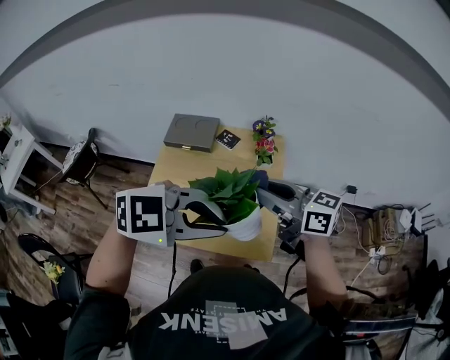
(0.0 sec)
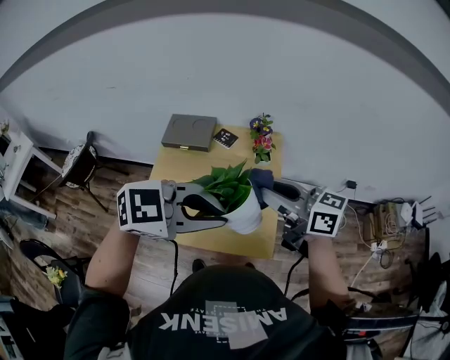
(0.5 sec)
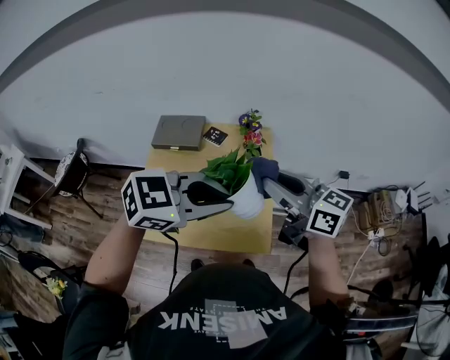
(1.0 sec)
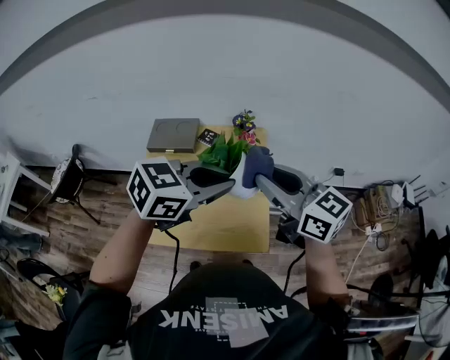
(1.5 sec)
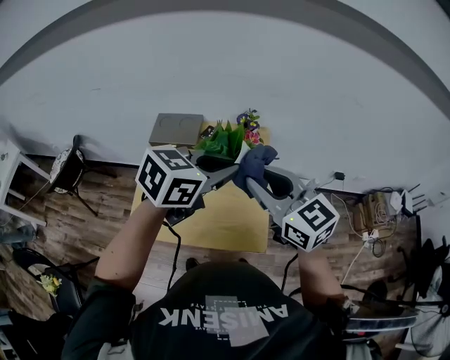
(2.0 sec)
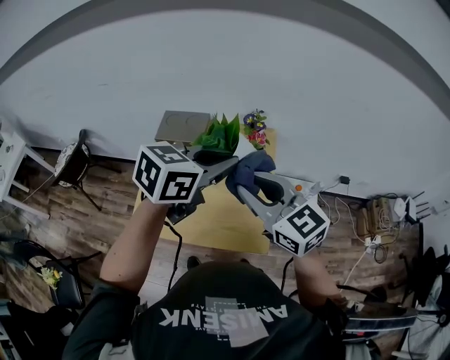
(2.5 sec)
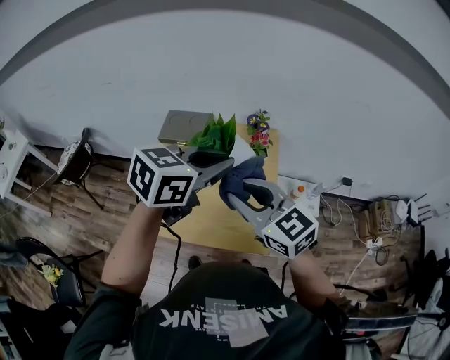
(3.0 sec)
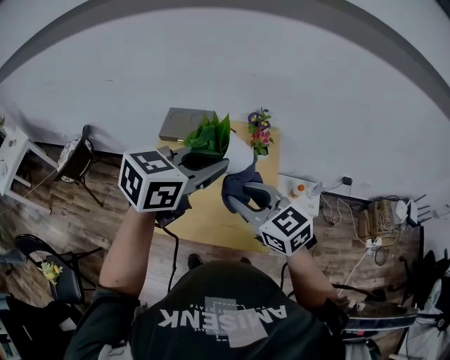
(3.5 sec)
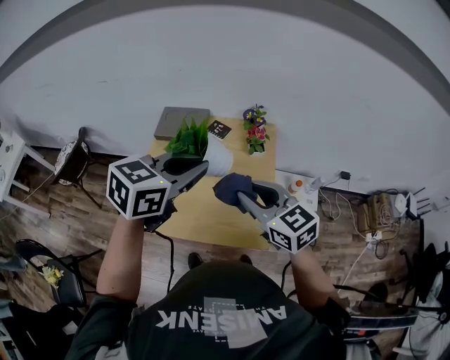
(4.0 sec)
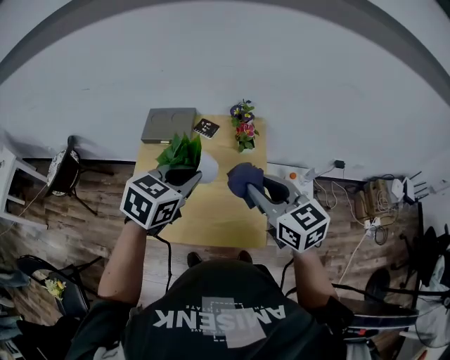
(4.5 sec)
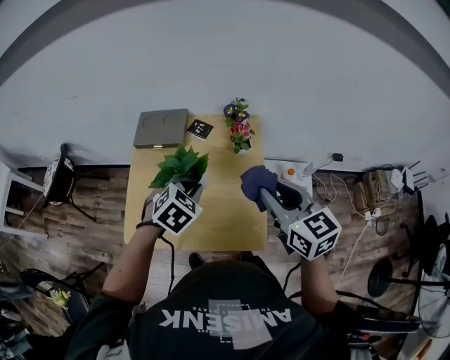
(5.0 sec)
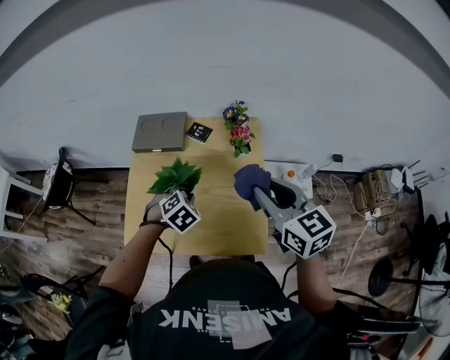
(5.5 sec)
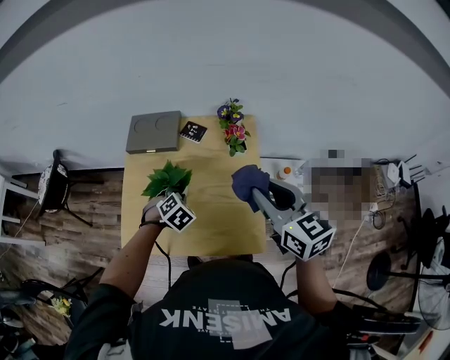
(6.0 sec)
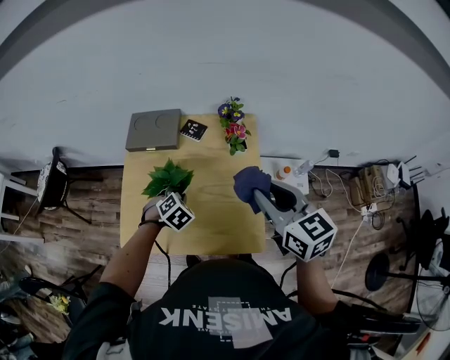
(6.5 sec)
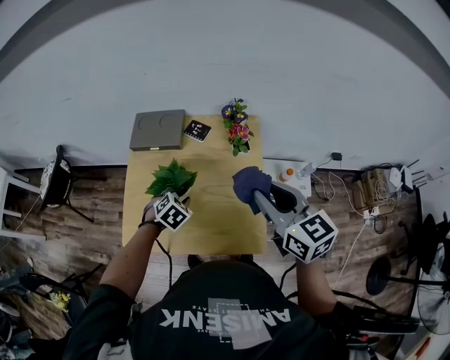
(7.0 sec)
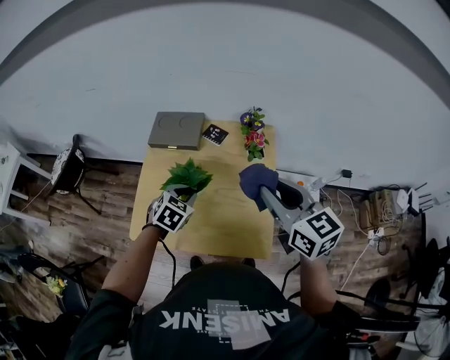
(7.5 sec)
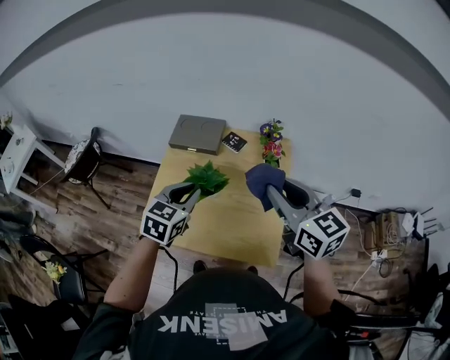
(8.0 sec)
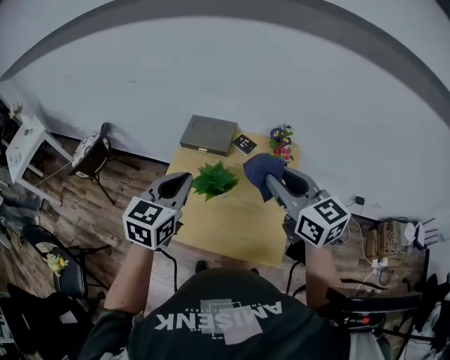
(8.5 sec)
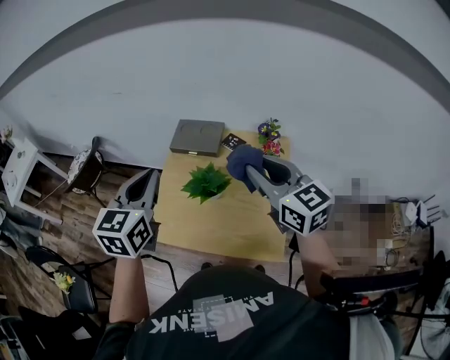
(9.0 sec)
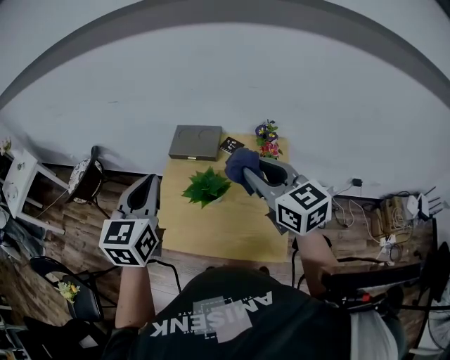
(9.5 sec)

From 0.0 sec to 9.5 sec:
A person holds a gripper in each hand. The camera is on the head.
From 0.0 sec to 2.0 sec: The right gripper rotates roughly 30 degrees. The left gripper ends up about 10 cm from where it was, and changes its angle by about 40 degrees.
From 2.0 sec to 4.0 sec: The right gripper goes about 10 cm downward; the left gripper travels to the left by some 10 cm.
From 4.0 sec to 5.5 sec: The right gripper shifts approximately 10 cm to the right and forward, while the left gripper shifts roughly 25 cm downward, and tips its fingers downward by approximately 40 degrees.
From 5.5 sec to 7.5 sec: The left gripper moves approximately 5 cm downward and comes back, and changes its angle by some 20 degrees.
From 7.5 sec to 9.5 sec: The left gripper goes approximately 30 cm upward and to the left, and tilts its fingers approximately 40 degrees upward, while the right gripper travels to the left and upward by roughly 10 cm.

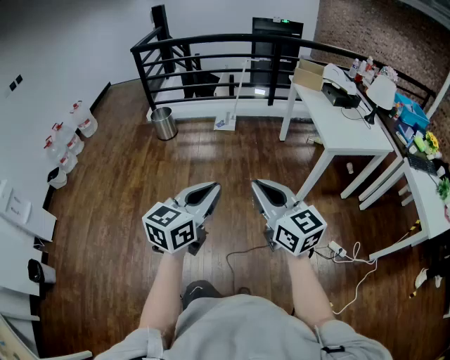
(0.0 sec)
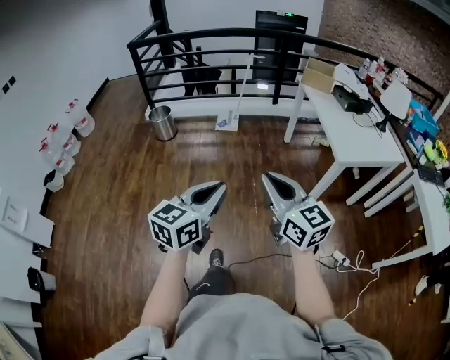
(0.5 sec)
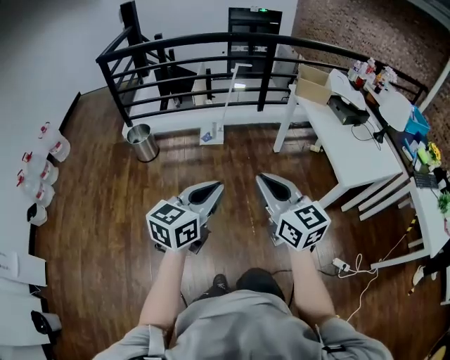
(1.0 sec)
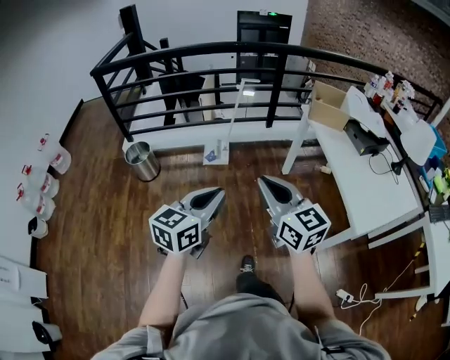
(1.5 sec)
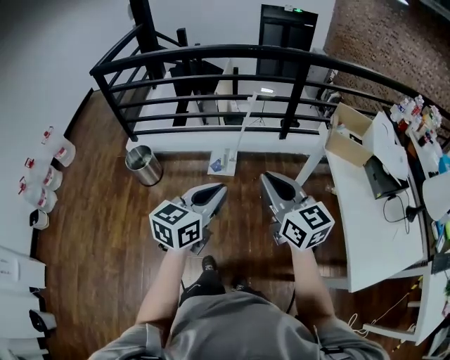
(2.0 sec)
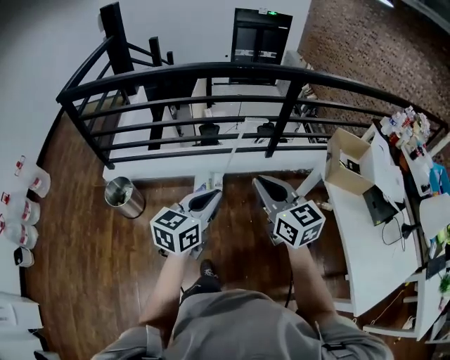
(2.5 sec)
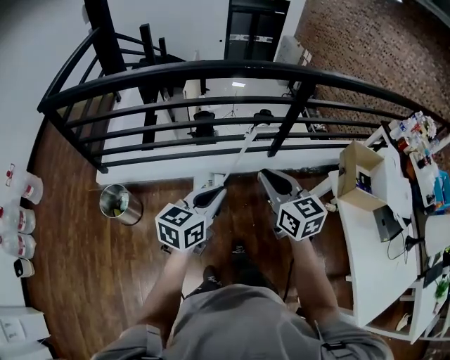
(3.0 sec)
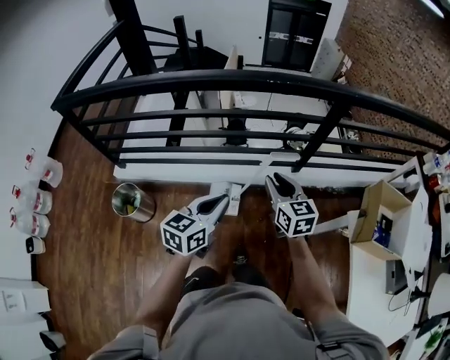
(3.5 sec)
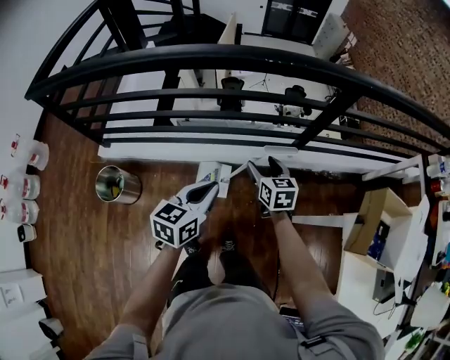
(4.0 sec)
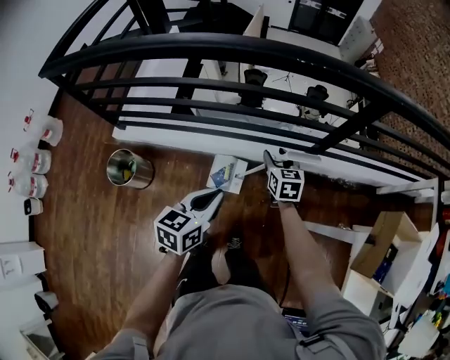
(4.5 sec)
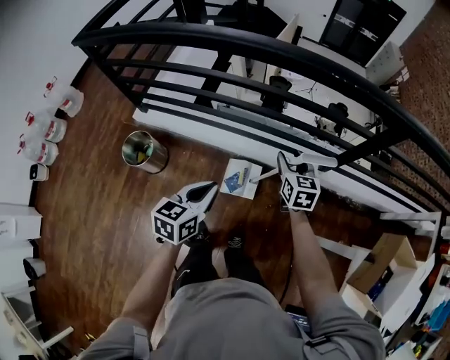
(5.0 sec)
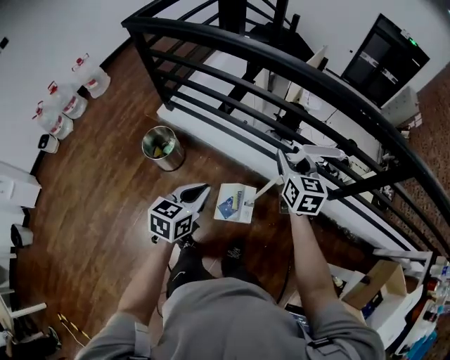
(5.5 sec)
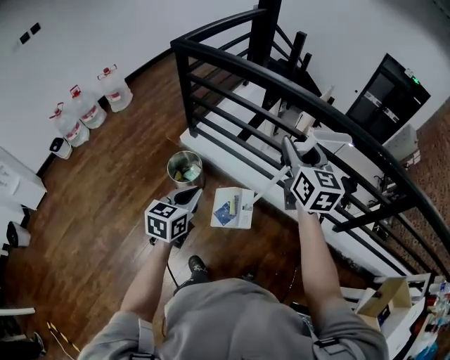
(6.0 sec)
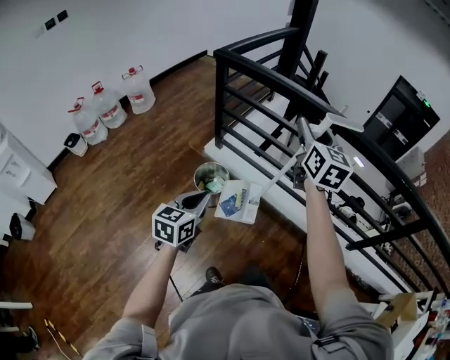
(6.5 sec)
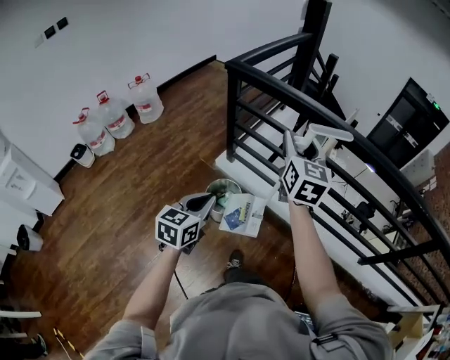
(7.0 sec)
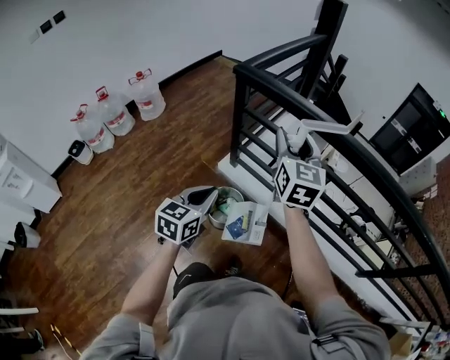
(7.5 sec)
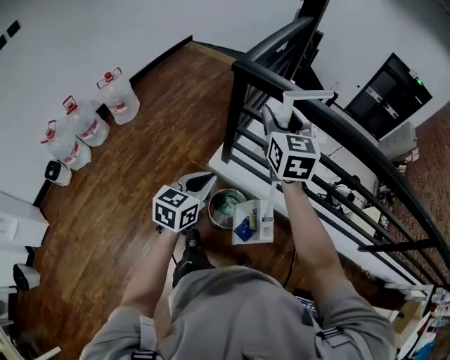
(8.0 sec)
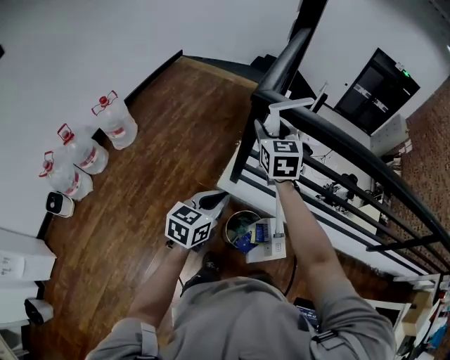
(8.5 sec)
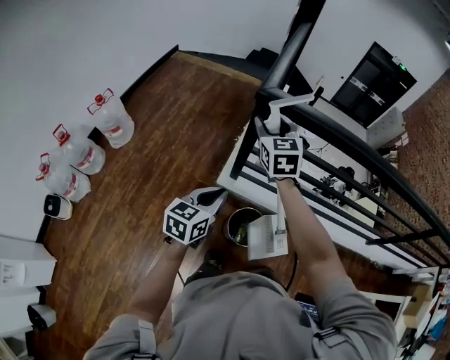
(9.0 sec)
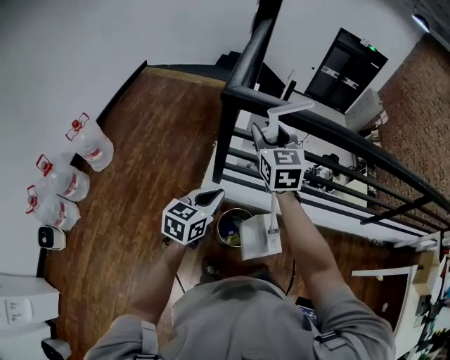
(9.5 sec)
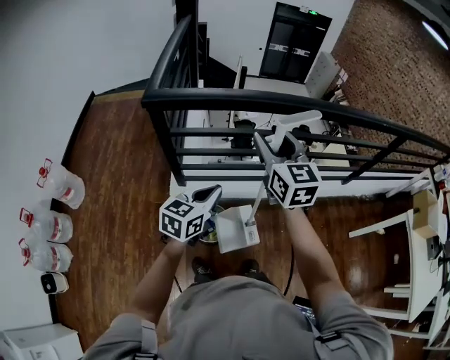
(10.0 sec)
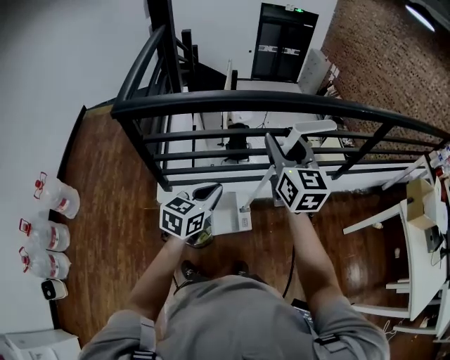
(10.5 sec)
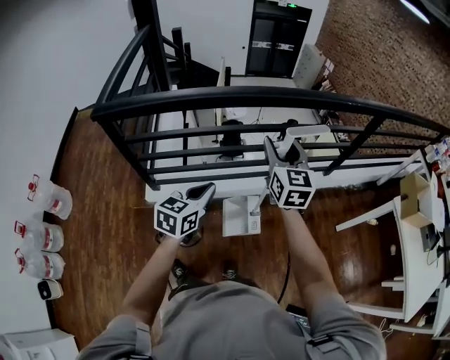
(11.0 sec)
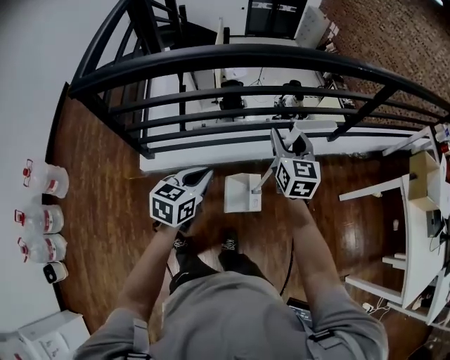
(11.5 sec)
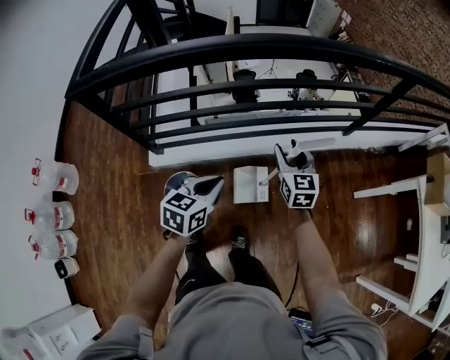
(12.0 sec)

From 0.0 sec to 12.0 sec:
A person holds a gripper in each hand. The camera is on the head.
From 0.0 sec to 2.0 sec: The pair of grippers is taken forward, roughly 80 cm.
From 2.0 sec to 4.0 sec: The pair of grippers is taken forward, approximately 60 cm. The right gripper is displaced downward by some 30 cm, changes its angle by approximately 30 degrees, and opens.
From 4.0 sec to 6.0 sec: The right gripper shifts by about 50 cm, and swivels approximately 40 degrees, while the left gripper shifts by roughly 40 cm, and swivels some 40 degrees.
From 6.0 sec to 8.0 sec: The two grippers travel together, to the left and forward, some 50 cm.
From 8.0 sec to 10.0 sec: The left gripper changes place by roughly 15 cm, and changes its angle by roughly 30 degrees. The right gripper changes place by about 20 cm, and turns by roughly 20 degrees.
From 10.0 sec to 12.0 sec: The left gripper travels to the right and downward by about 25 cm. The right gripper travels to the right and downward by some 40 cm.

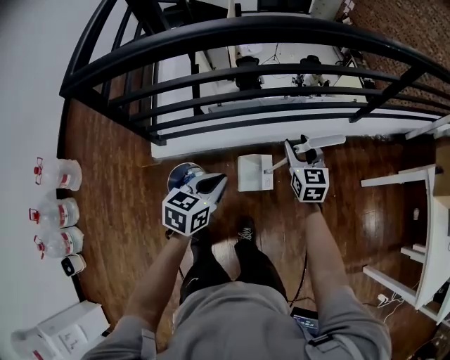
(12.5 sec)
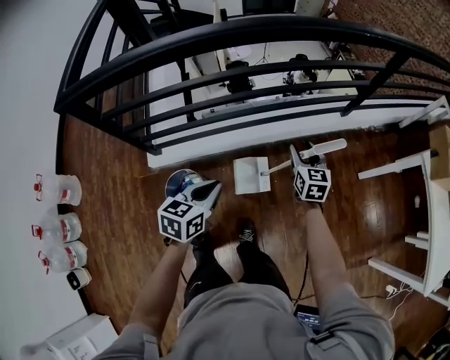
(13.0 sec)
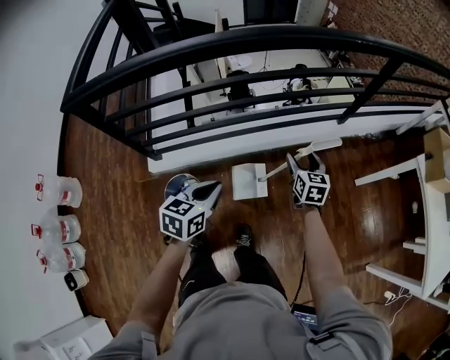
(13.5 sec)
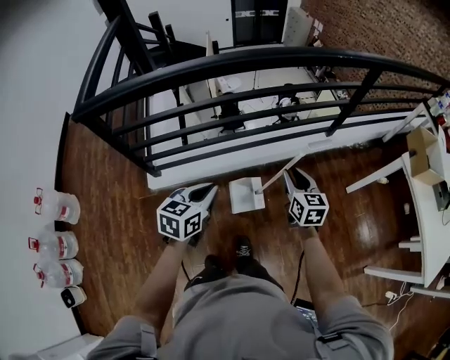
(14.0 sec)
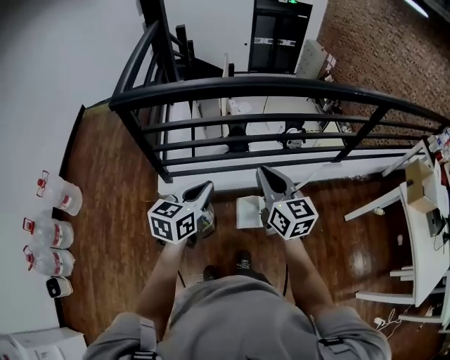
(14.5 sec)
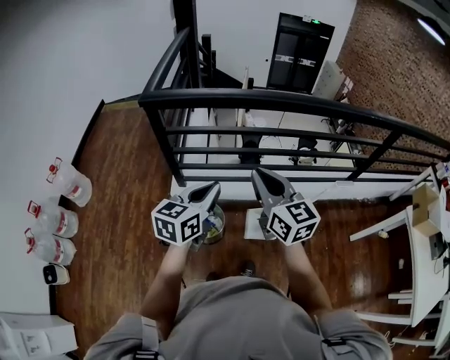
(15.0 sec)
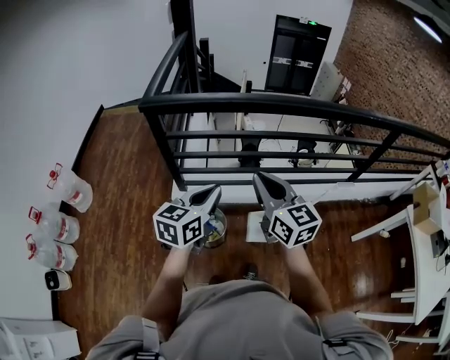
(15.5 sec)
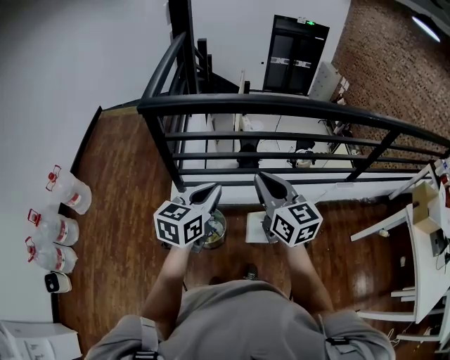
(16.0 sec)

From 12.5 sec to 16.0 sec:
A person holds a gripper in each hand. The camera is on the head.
From 12.5 sec to 14.5 sec: The left gripper shifts approximately 20 cm upward, to the left and backward, while the right gripper is displaced upward, backward and to the left by approximately 35 cm, swivels roughly 20 degrees, and closes up.
From 14.5 sec to 16.0 sec: The right gripper heads to the left, covering approximately 10 cm; the left gripper moves to the left, approximately 5 cm.

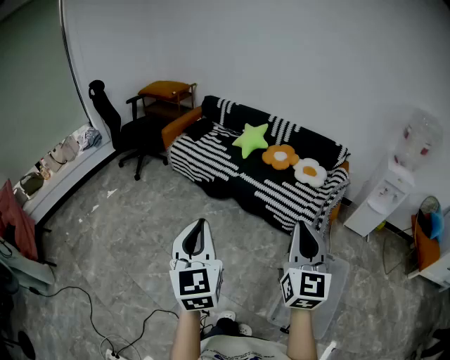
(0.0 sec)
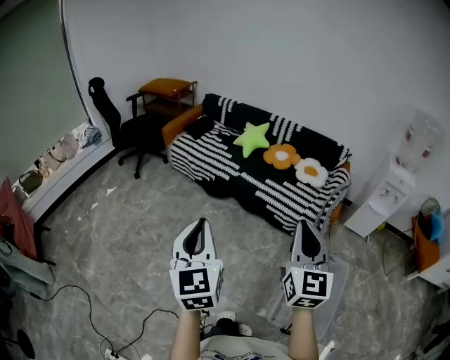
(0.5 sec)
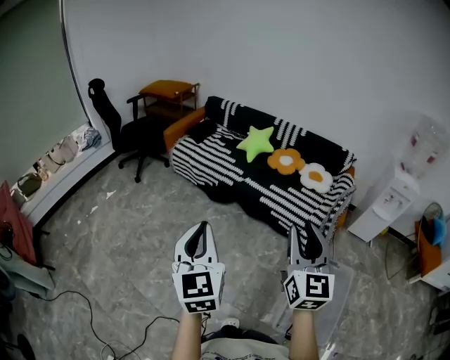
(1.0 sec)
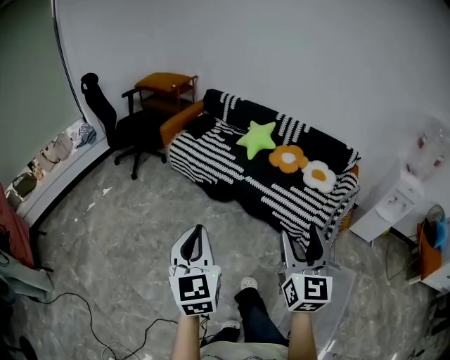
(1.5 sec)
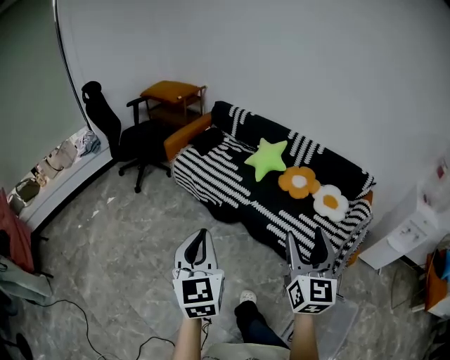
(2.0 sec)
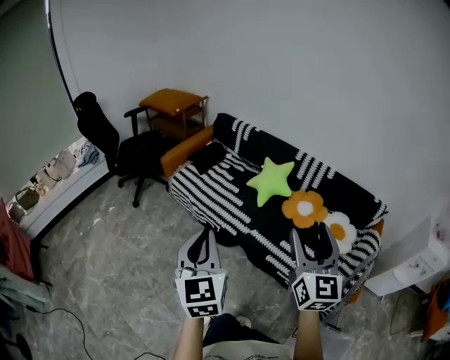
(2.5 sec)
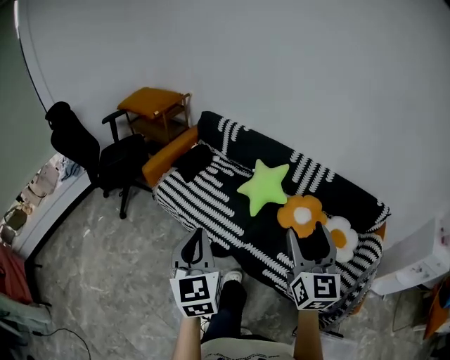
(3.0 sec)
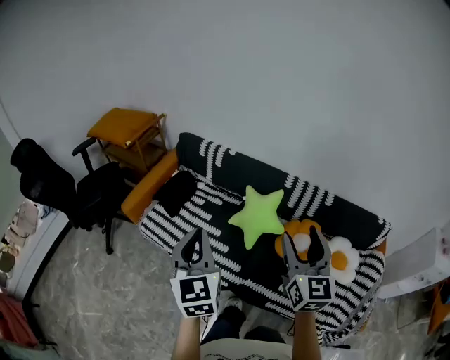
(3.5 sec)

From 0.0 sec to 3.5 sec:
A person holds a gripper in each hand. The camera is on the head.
From 0.0 sec to 2.0 sec: The two grippers go some 30 cm forward. The right gripper opens up.
From 2.0 sec to 3.5 sec: The two grippers travel together, forward, approximately 60 cm.
